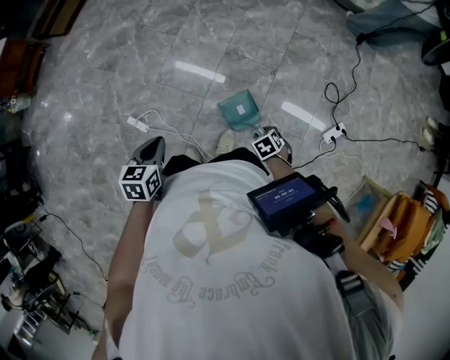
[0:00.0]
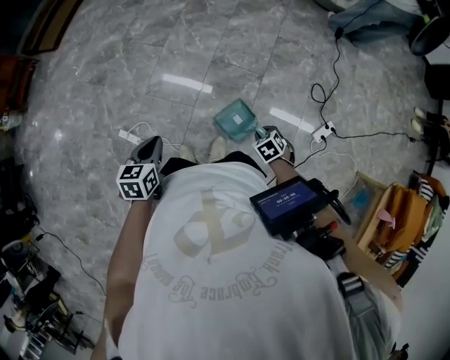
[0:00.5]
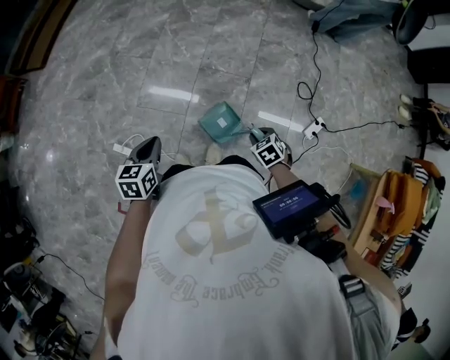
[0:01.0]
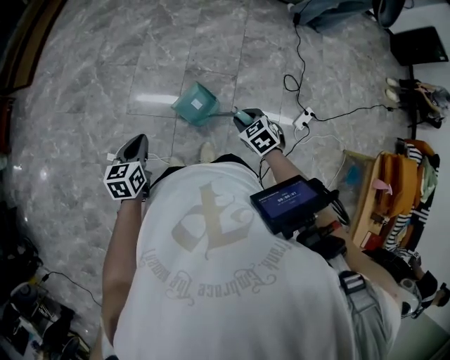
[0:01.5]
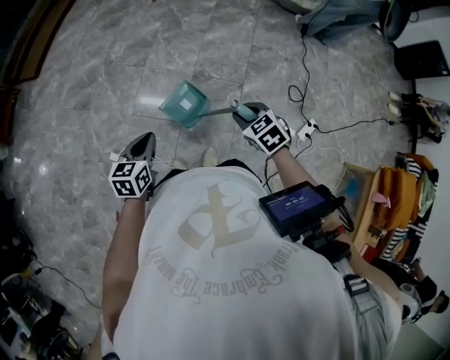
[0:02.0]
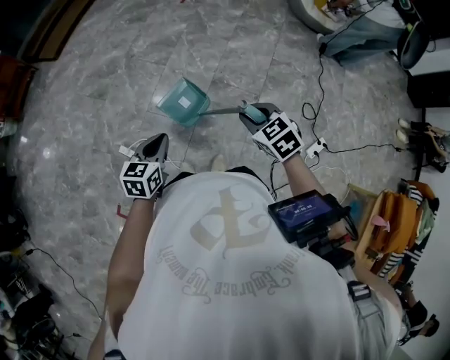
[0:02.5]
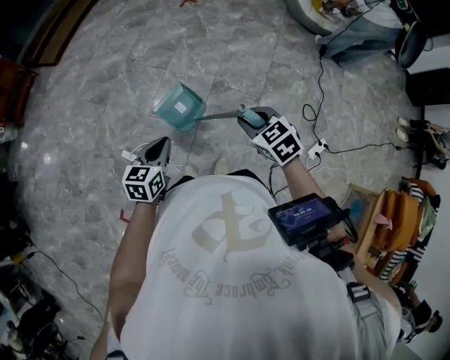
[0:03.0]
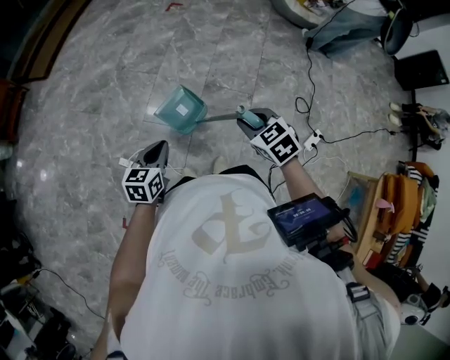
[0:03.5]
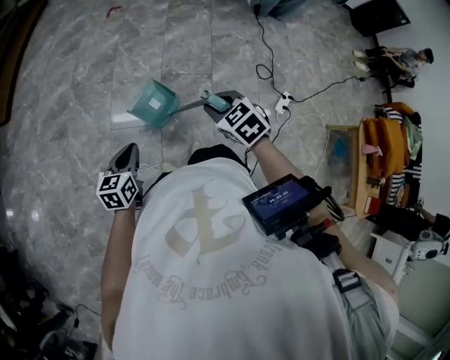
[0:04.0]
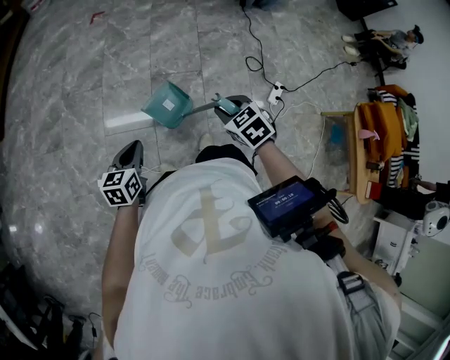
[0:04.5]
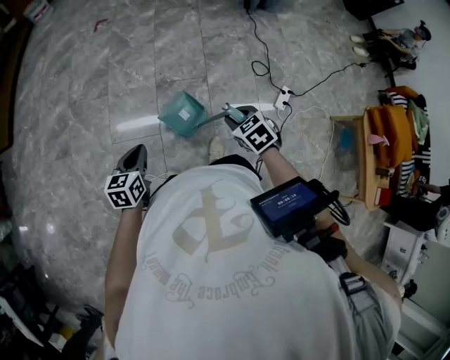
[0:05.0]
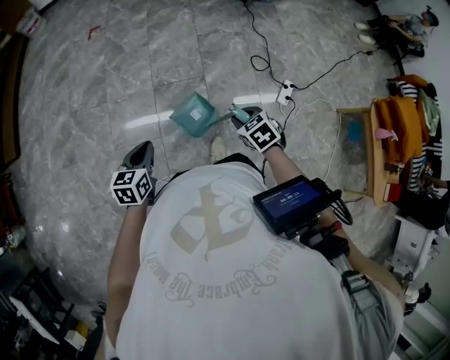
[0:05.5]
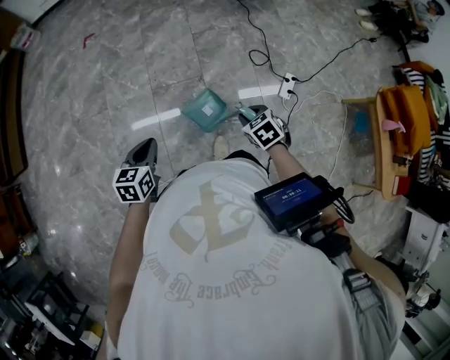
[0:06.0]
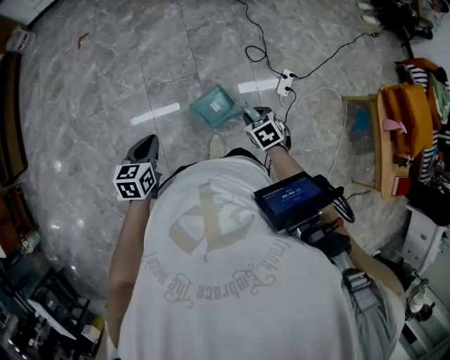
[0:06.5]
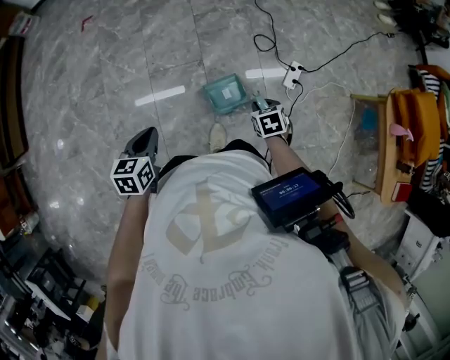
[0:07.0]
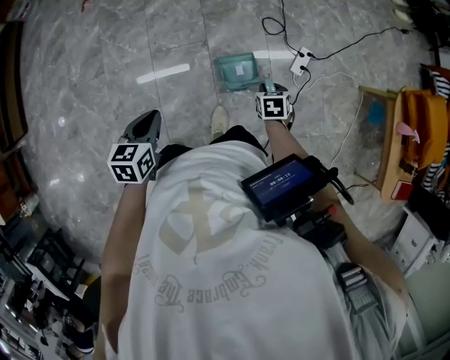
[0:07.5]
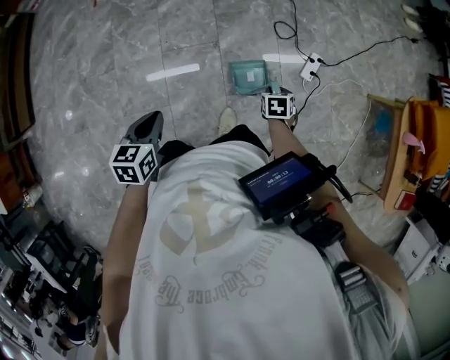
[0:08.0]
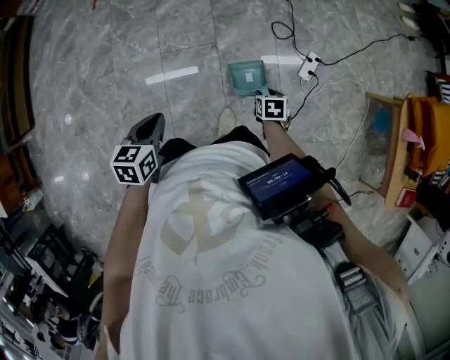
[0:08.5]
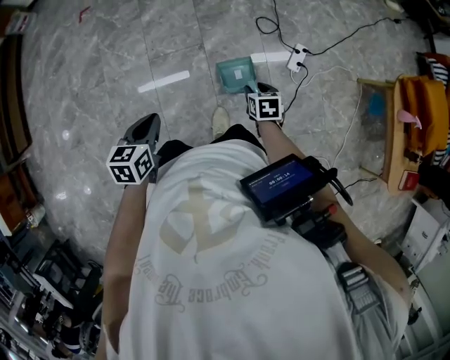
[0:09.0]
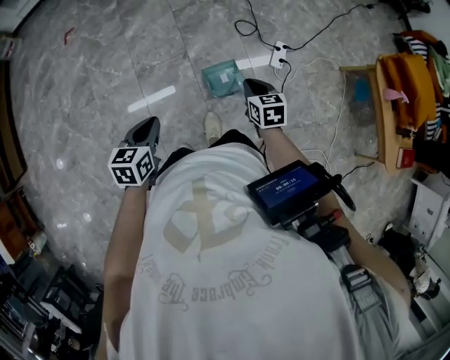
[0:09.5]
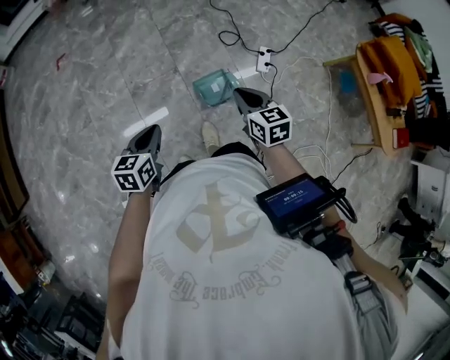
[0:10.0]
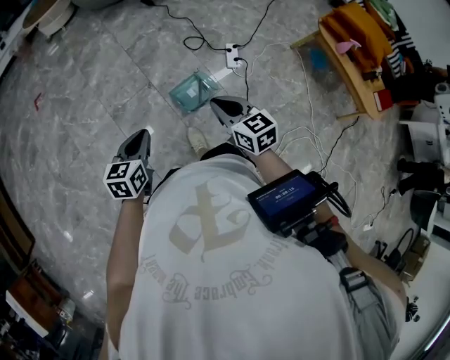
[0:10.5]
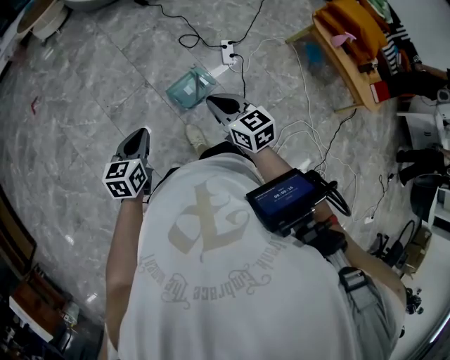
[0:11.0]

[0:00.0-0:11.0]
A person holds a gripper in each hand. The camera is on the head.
0:00.0 to 0:02.0: The right gripper goes about 20 cm upward, and rotates about 20 degrees. Meanwhile the left gripper ends up about 10 cm from where it was.
0:02.0 to 0:03.5: The right gripper goes some 10 cm to the left and upward.
0:03.5 to 0:05.5: The left gripper moves to the right and forward, some 20 cm, while the right gripper moves to the right and downward, some 25 cm, and swivels approximately 30 degrees.
0:05.5 to 0:07.5: The right gripper is displaced to the right and downward by roughly 25 cm, and rotates roughly 30 degrees; the left gripper is displaced to the right and forward by some 15 cm.
0:07.5 to 0:09.0: The right gripper opens.
0:09.0 to 0:11.0: The right gripper goes about 30 cm upward and backward, tips its fingers upward by about 30 degrees, and closes its fingers. The left gripper travels to the right, backward and upward by approximately 10 cm, and turns by some 30 degrees.

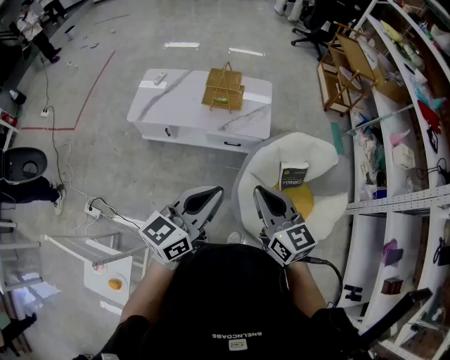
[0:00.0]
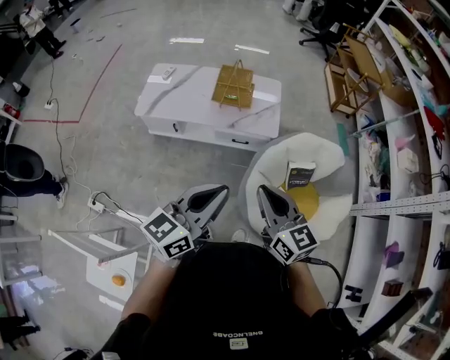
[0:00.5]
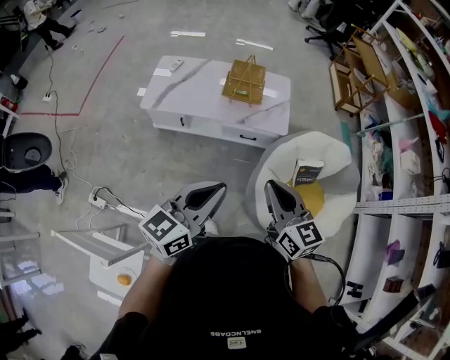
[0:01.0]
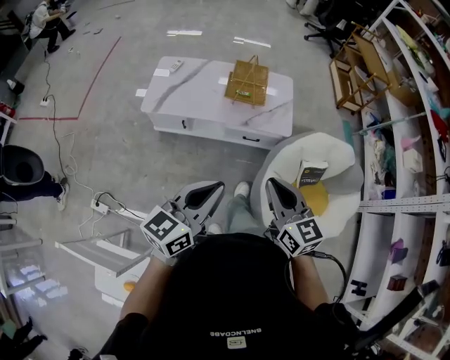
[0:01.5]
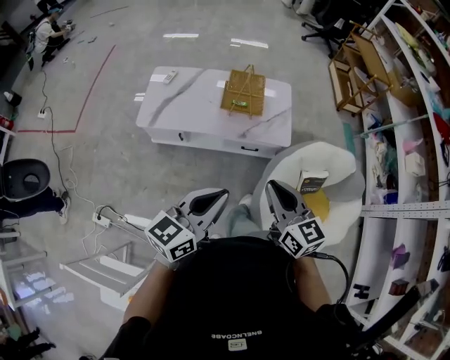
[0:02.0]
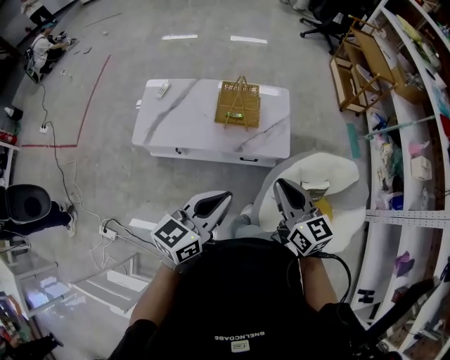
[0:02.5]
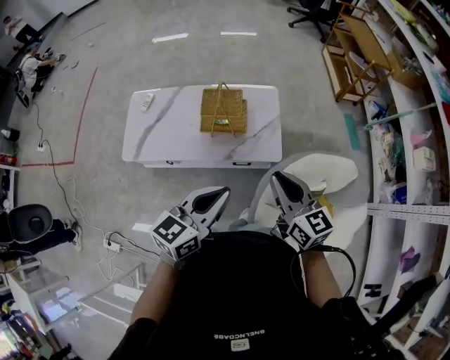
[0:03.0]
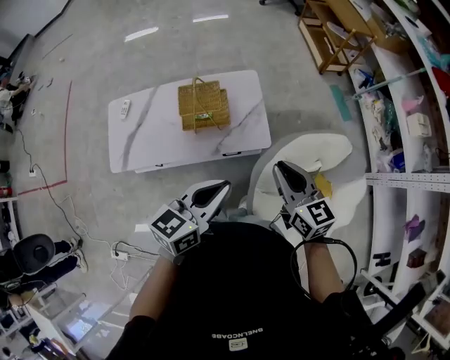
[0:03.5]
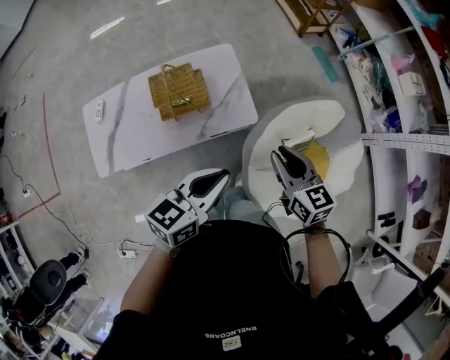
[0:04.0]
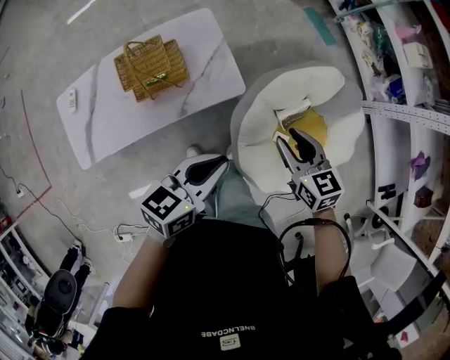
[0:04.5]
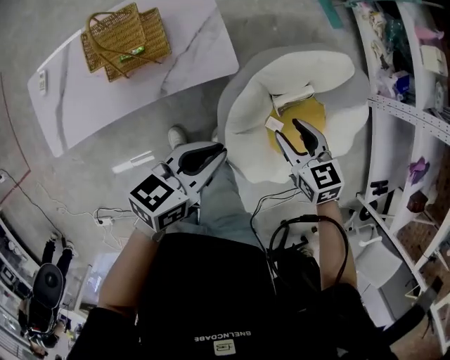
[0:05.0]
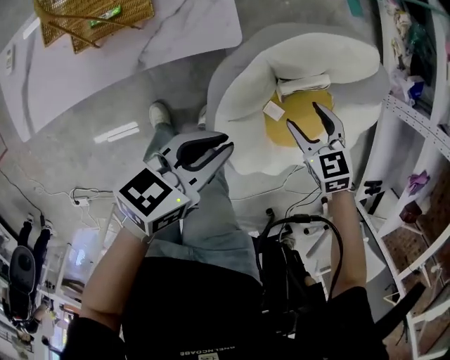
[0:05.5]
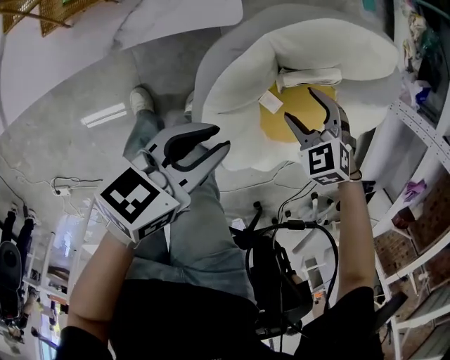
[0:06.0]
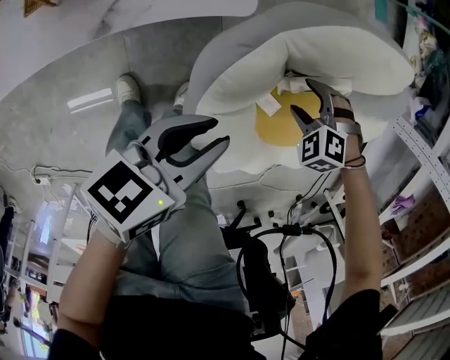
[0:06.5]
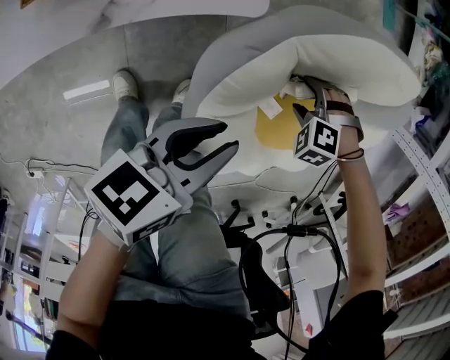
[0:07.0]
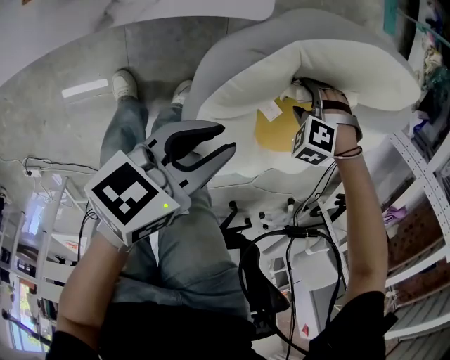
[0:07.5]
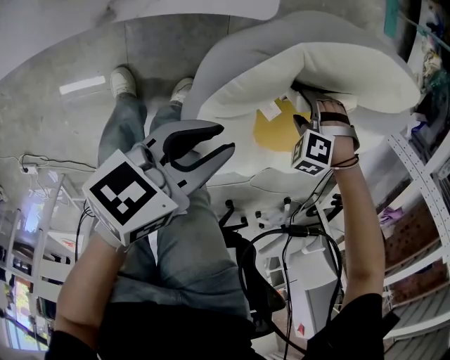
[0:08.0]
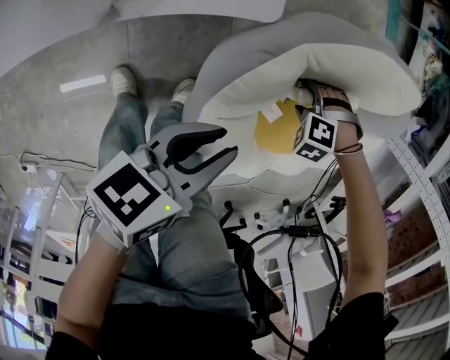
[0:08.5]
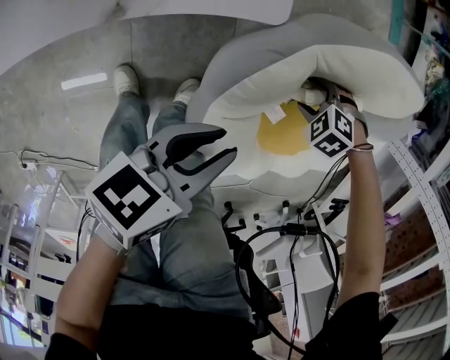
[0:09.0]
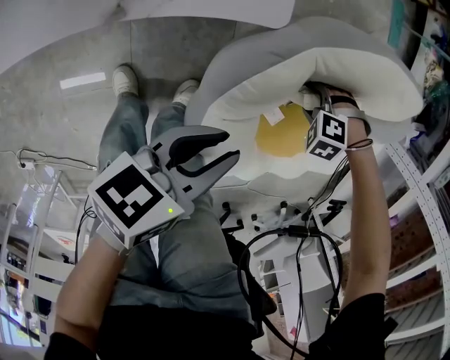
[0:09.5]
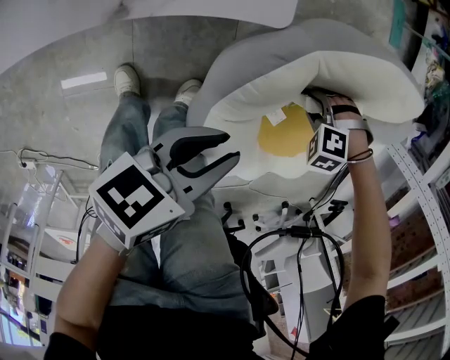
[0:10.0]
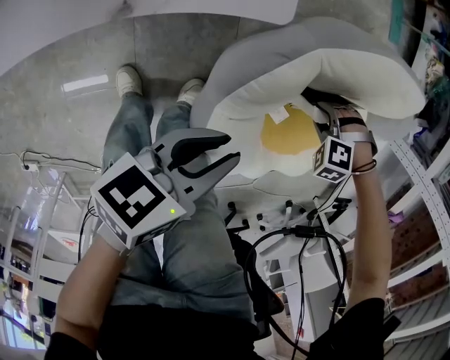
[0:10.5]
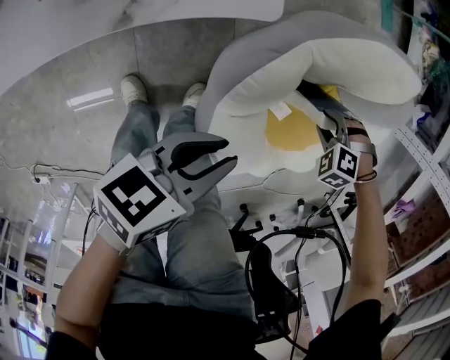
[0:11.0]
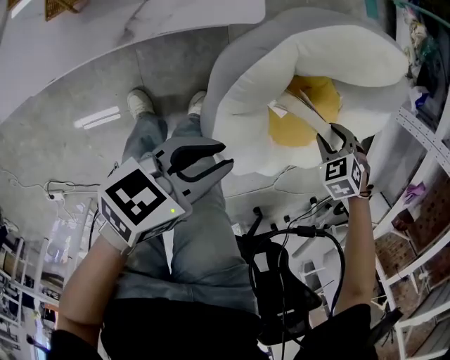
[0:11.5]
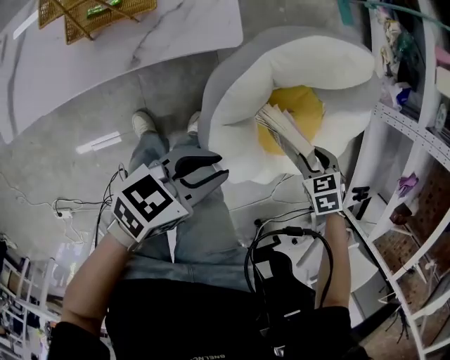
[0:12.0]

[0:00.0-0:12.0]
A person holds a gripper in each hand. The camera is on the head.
0:00.0 to 0:02.0: The grippers both shift to the left and forward by roughly 15 cm.
0:02.0 to 0:04.0: The two grippers go roughly 30 cm forward and to the right. The left gripper rotates roughly 30 degrees, while the right gripper swivels roughly 20 degrees.
0:04.0 to 0:06.0: Both grippers move downward, about 40 cm. The right gripper angles its fingers downward, by approximately 50 degrees, and opens up. The left gripper changes its angle by some 20 degrees.
0:06.0 to 0:08.0: The left gripper heads downward, covering approximately 10 cm. Meanwhile the right gripper heads downward, covering approximately 15 cm, and rotates about 50 degrees.
0:08.0 to 0:10.0: The right gripper closes its fingers.
0:10.0 to 0:12.0: The left gripper heads upward, covering roughly 10 cm, and rotates roughly 20 degrees. Meanwhile the right gripper travels upward by roughly 20 cm, and rotates around the line of its fingers by some 70 degrees, clockwise from behind.

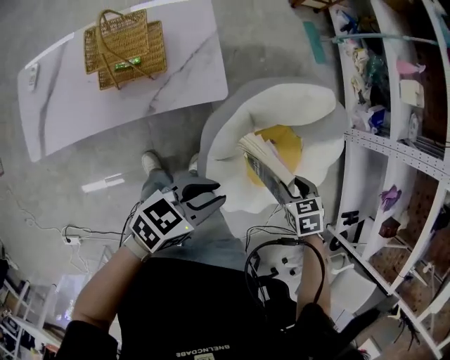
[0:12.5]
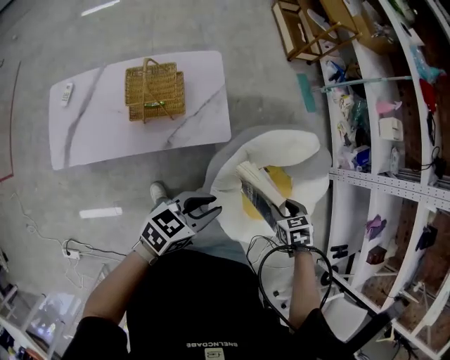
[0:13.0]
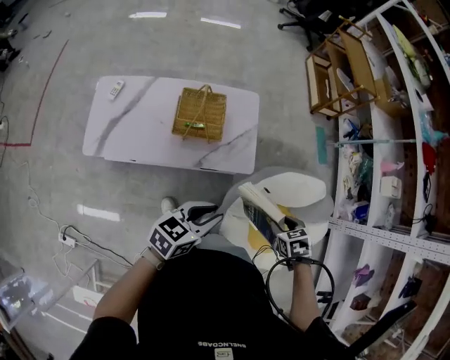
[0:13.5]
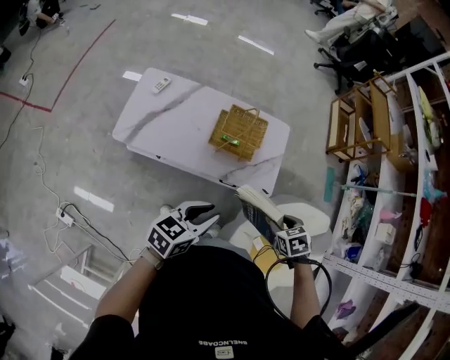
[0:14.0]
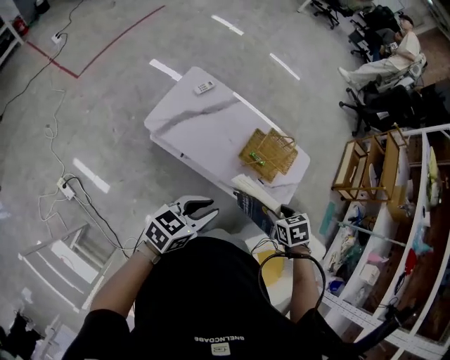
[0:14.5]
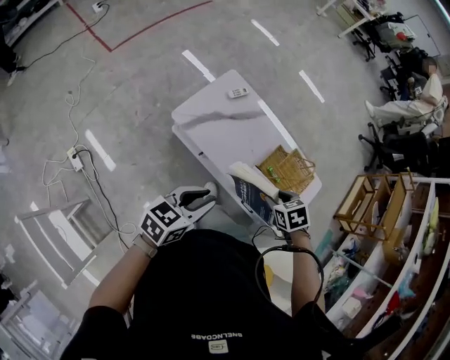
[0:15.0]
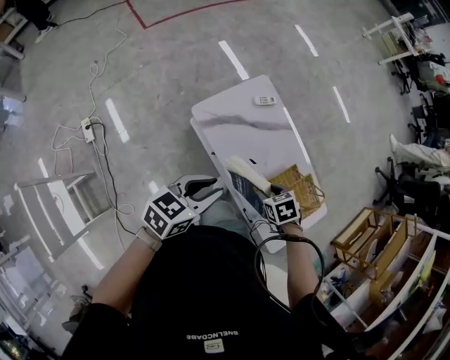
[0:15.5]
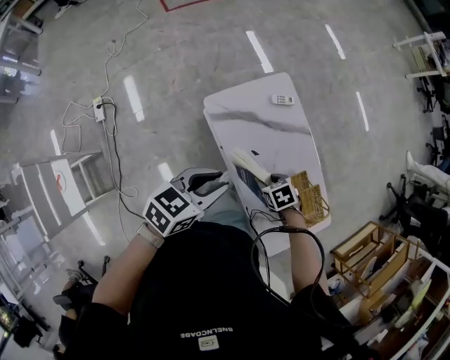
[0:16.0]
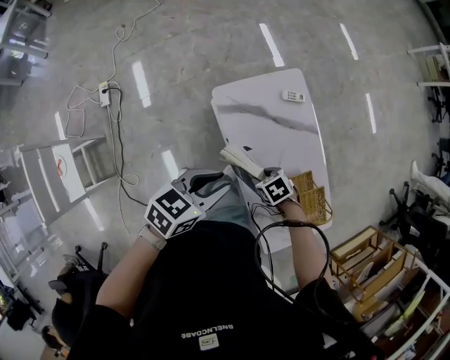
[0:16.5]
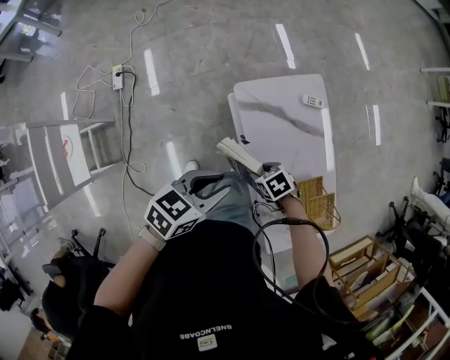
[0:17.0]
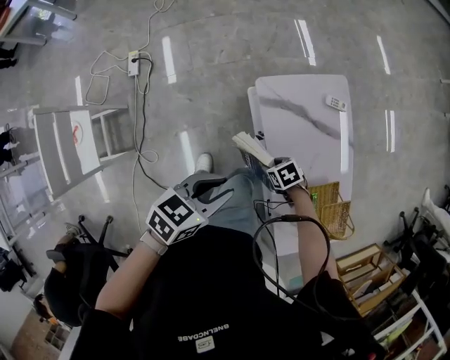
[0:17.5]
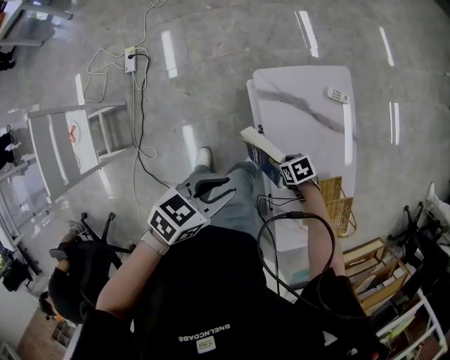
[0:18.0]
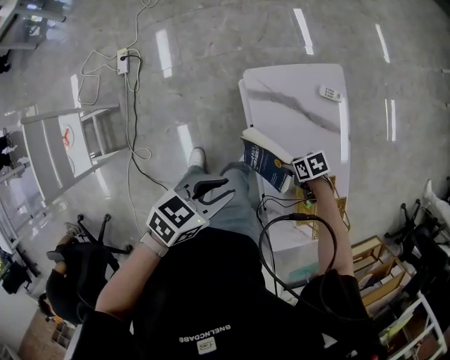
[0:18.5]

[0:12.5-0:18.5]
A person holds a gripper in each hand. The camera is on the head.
0:12.5 to 0:14.5: Both grippers are carried about 50 cm. The right gripper changes its angle by some 40 degrees. The left gripper turns by approximately 50 degrees.
0:14.5 to 0:16.5: The right gripper ends up approximately 35 cm from where it was, and rolls counterclockwise, seen from behind, by some 50 degrees, while the left gripper shifts by about 20 cm, and rotates roughly 40 degrees.
0:16.5 to 0:18.5: The two grippers go approximately 5 cm downward.
